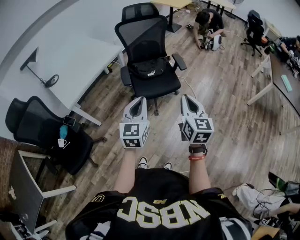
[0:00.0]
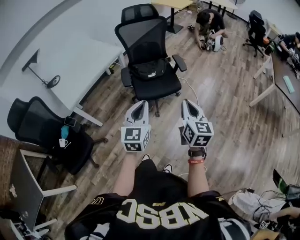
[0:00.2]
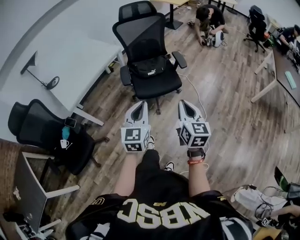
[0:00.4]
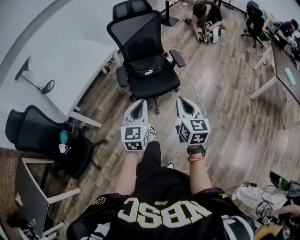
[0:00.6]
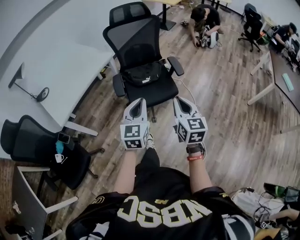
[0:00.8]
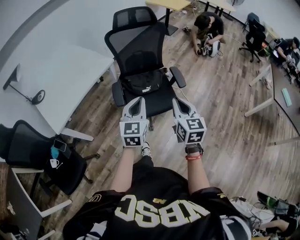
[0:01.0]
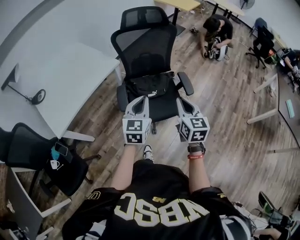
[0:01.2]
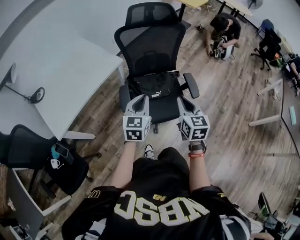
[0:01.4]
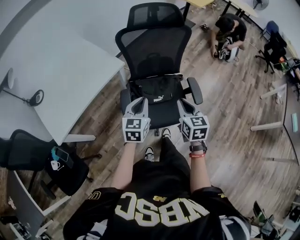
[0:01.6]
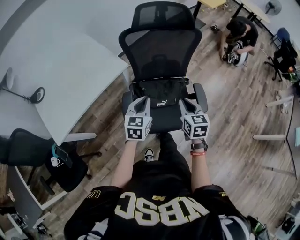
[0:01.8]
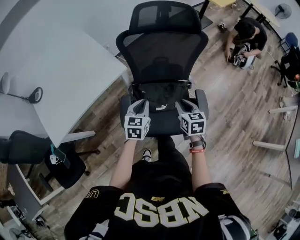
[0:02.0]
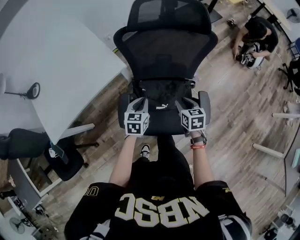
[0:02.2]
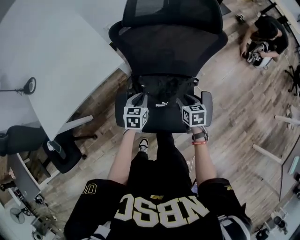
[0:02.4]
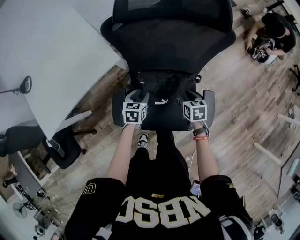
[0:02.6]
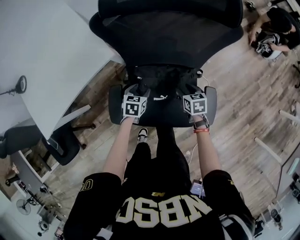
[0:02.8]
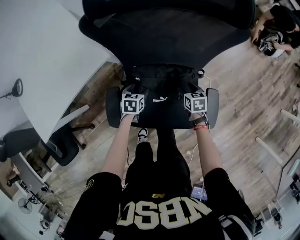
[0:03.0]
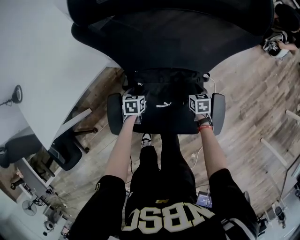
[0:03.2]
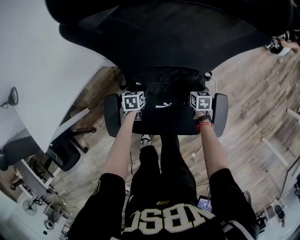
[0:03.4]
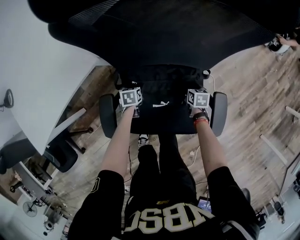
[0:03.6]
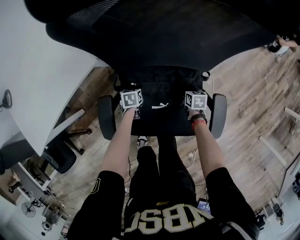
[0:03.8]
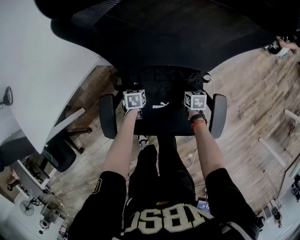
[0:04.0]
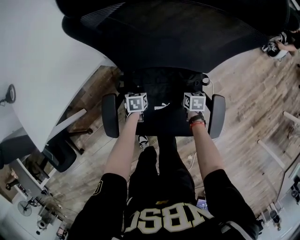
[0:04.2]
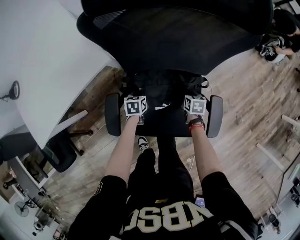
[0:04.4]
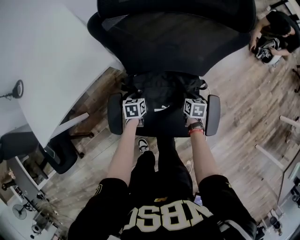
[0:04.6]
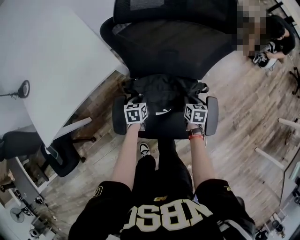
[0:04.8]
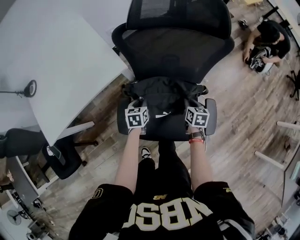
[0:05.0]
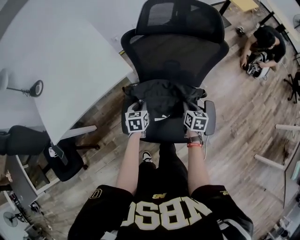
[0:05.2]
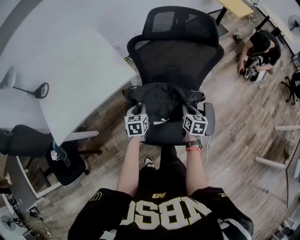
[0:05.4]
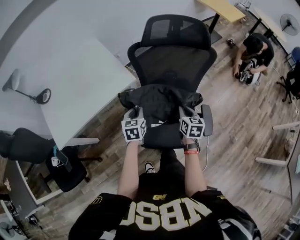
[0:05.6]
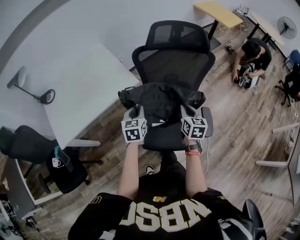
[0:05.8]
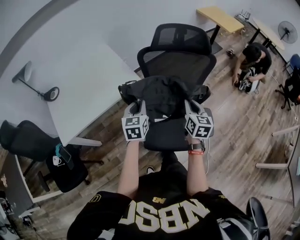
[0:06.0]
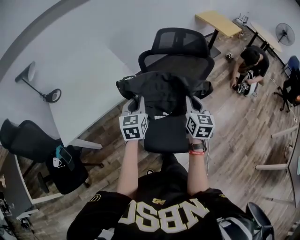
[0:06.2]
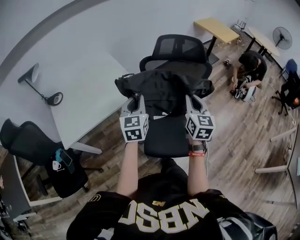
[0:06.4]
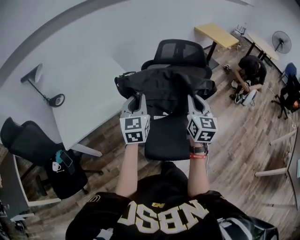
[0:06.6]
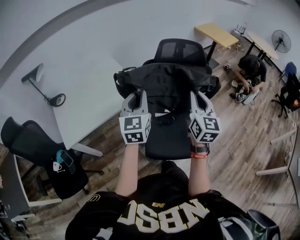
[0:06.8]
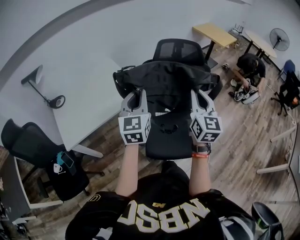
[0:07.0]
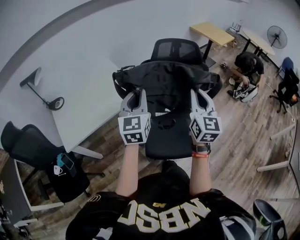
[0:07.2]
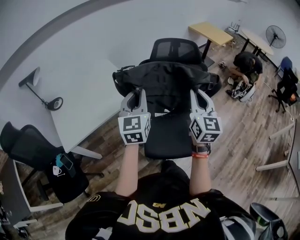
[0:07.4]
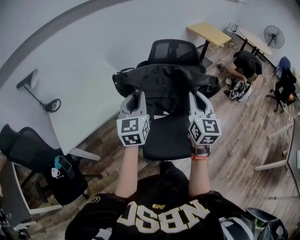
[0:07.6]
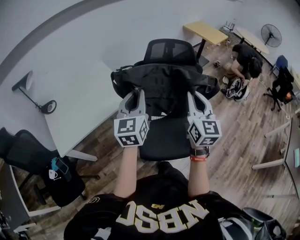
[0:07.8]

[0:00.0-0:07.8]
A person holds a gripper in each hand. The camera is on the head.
0:00.0 to 0:01.6: The two grippers travel together, forward, some 40 cm. The right gripper rotates approximately 20 degrees.
0:01.6 to 0:03.2: Both grippers travel together downward and forward, roughly 50 cm. The right gripper rotates some 40 degrees, and opens its fingers; the left gripper angles its fingers downward, by about 40 degrees, and opens its fingers.
0:03.2 to 0:04.6: The left gripper travels downward and back again, approximately 10 cm each way, and closes its fingers; the right gripper goes downward and returns, about 10 cm each way, and closes.
0:04.6 to 0:06.2: The grippers both shift upward by some 50 cm. The left gripper angles its fingers upward, by approximately 40 degrees. The right gripper points its fingers roughly 40 degrees further upward.
0:06.2 to 0:07.8: The grippers both shift upward by some 15 cm.

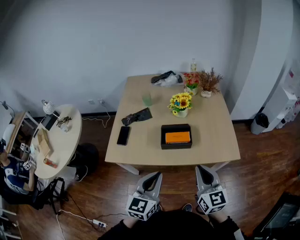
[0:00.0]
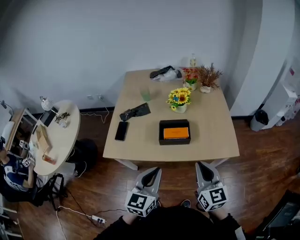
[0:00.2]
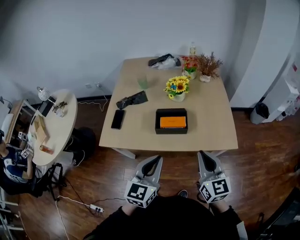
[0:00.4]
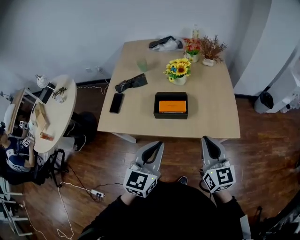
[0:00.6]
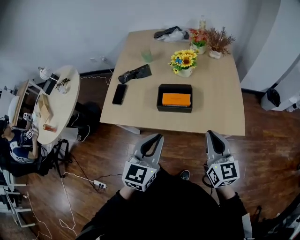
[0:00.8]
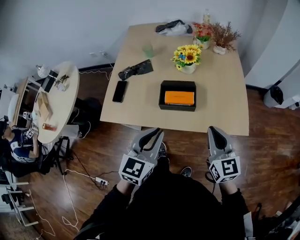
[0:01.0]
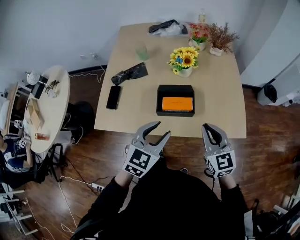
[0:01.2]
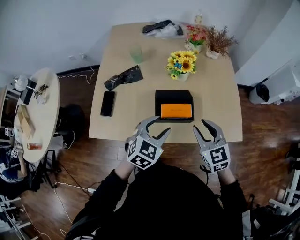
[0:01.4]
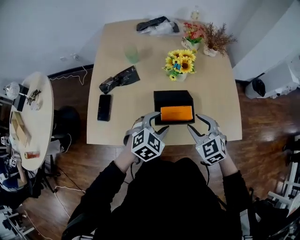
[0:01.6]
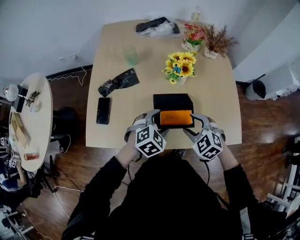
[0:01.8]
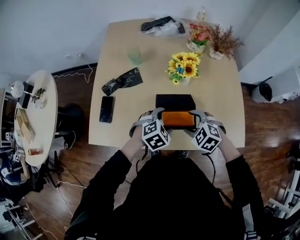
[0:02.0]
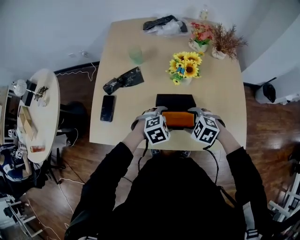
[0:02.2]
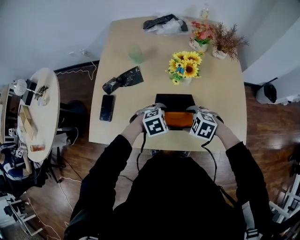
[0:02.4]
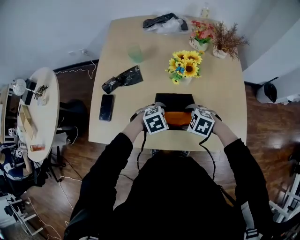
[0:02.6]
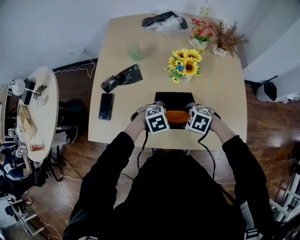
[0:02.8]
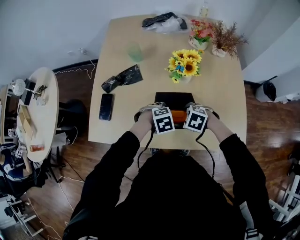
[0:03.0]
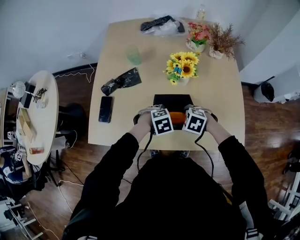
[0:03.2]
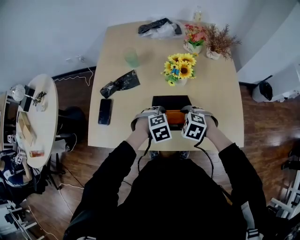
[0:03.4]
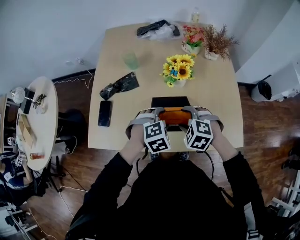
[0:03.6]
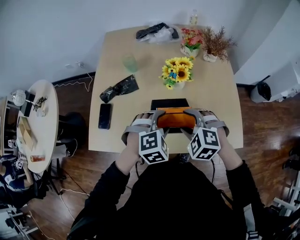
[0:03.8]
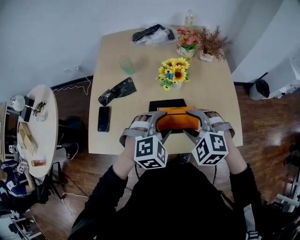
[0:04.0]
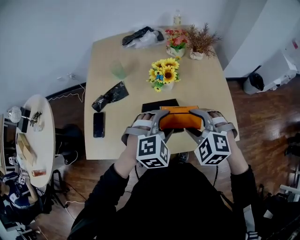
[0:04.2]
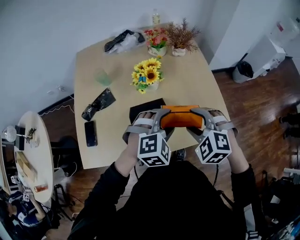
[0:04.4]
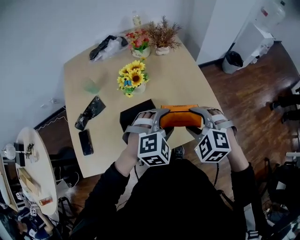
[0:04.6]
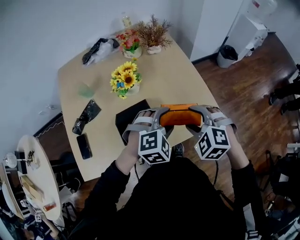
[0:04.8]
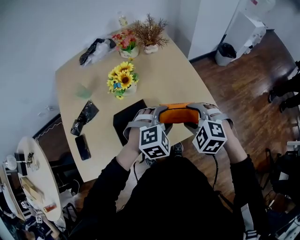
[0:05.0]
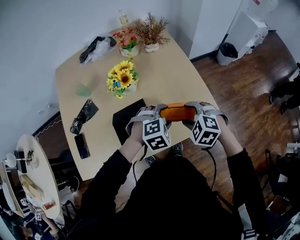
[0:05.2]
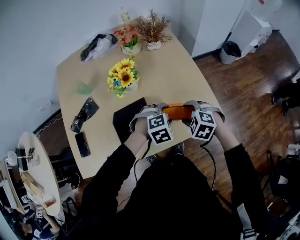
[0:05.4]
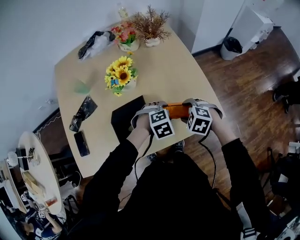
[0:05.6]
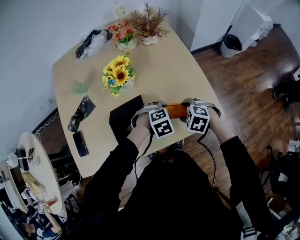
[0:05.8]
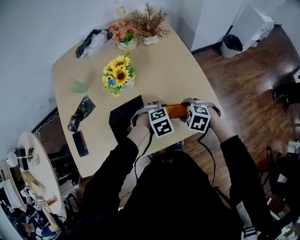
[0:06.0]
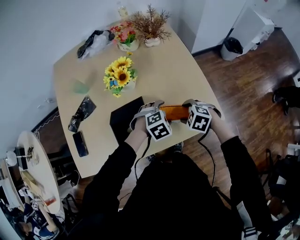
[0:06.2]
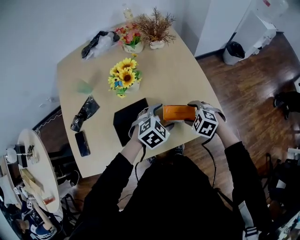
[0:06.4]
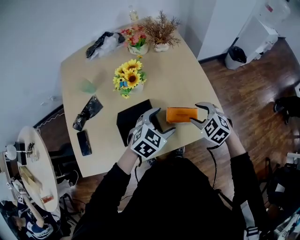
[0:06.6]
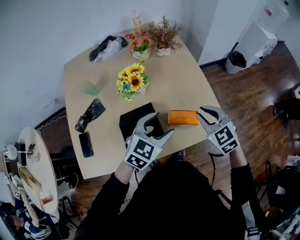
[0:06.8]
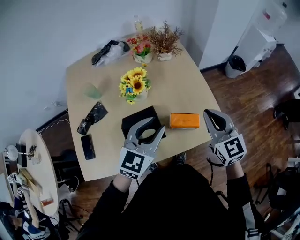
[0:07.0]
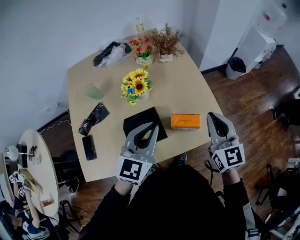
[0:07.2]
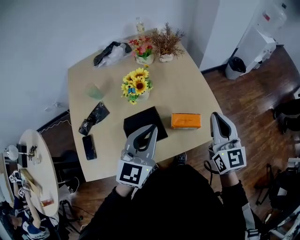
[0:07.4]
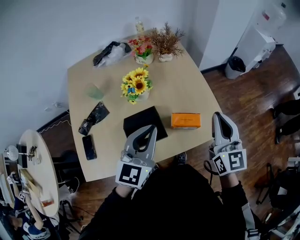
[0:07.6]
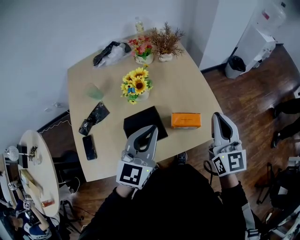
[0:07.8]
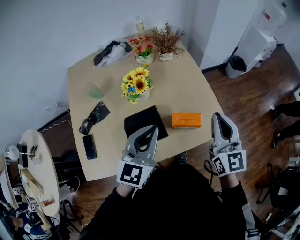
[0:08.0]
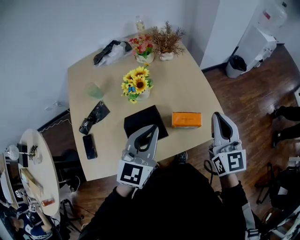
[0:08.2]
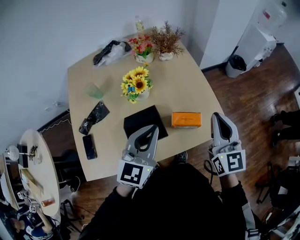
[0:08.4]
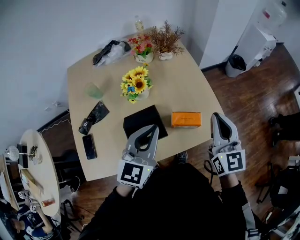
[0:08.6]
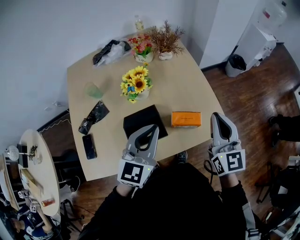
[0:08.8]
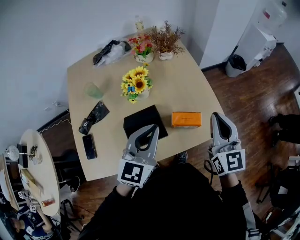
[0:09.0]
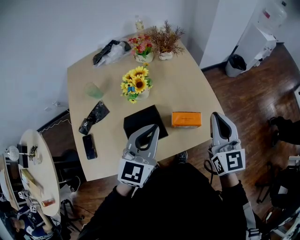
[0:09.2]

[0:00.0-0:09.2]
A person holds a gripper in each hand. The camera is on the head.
0:00.0 to 0:01.6: Both grippers travel together forward and downward, roughly 30 cm. The right gripper angles its fingers downward, by some 30 degrees, and opens its fingers. Meanwhile the left gripper angles its fingers downward, by some 30 degrees, and opens its fingers.
0:01.6 to 0:03.0: The two grippers go approximately 10 cm downward. The left gripper rotates about 40 degrees, while the right gripper tips its fingers downward by some 30 degrees.
0:03.0 to 0:04.6: Both grippers travel together upward, some 20 cm. The right gripper swivels some 40 degrees, while the left gripper swivels roughly 40 degrees.
0:04.6 to 0:06.2: The two grippers go roughly 15 cm downward. The left gripper rotates approximately 20 degrees, while the right gripper turns by approximately 30 degrees.
0:06.2 to 0:07.6: The right gripper heads upward, covering roughly 30 cm, points its fingers some 70 degrees further upward, and closes its fingers. Meanwhile the left gripper is displaced upward and to the left by roughly 30 cm, points its fingers some 60 degrees further upward, and closes its fingers.
0:07.6 to 0:09.2: The grippers move only a little.

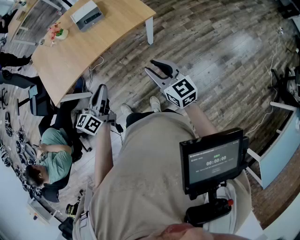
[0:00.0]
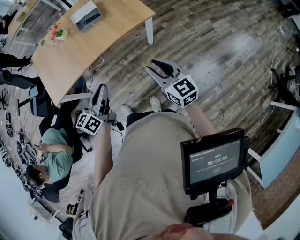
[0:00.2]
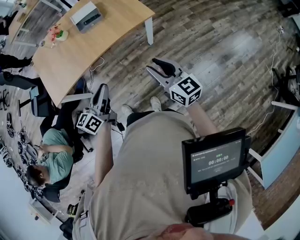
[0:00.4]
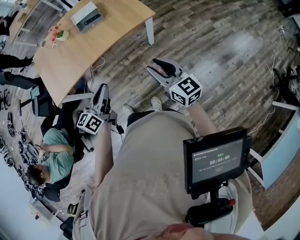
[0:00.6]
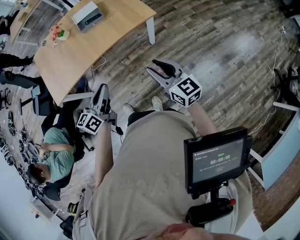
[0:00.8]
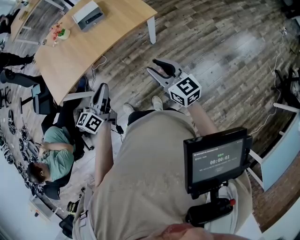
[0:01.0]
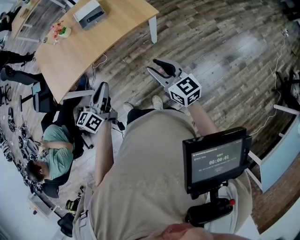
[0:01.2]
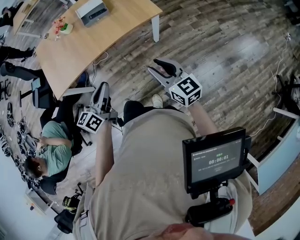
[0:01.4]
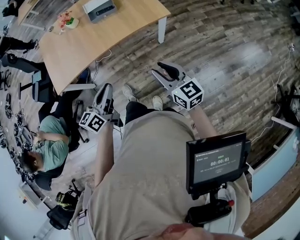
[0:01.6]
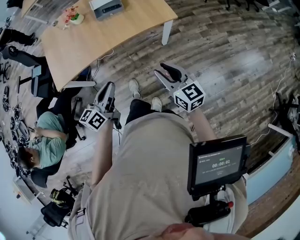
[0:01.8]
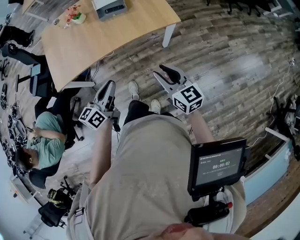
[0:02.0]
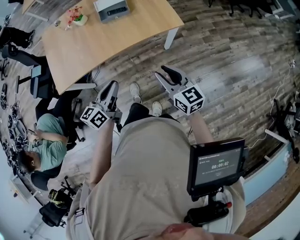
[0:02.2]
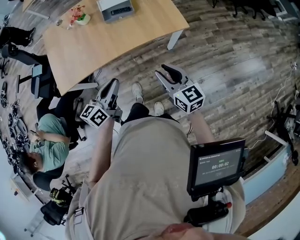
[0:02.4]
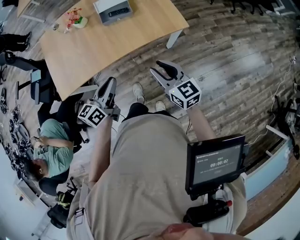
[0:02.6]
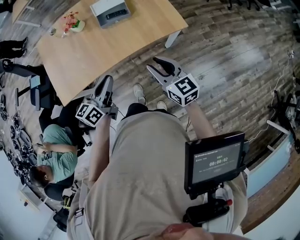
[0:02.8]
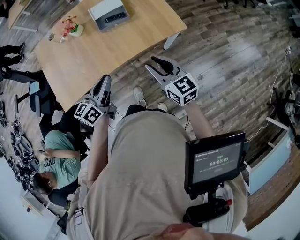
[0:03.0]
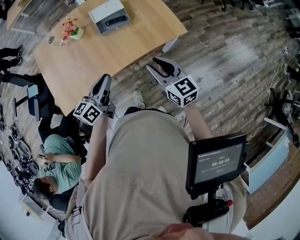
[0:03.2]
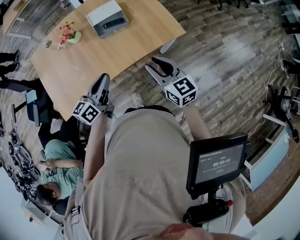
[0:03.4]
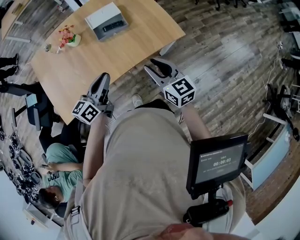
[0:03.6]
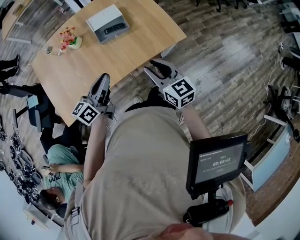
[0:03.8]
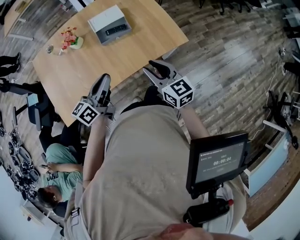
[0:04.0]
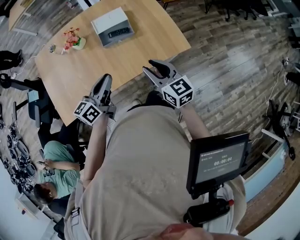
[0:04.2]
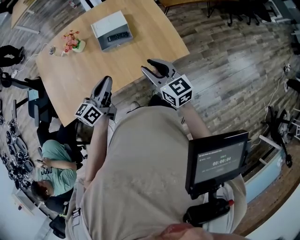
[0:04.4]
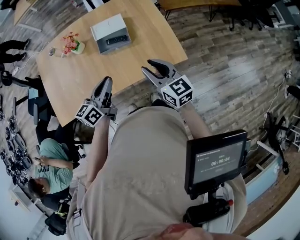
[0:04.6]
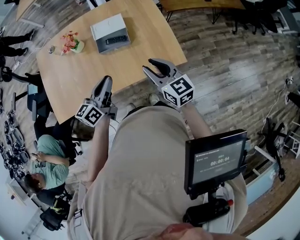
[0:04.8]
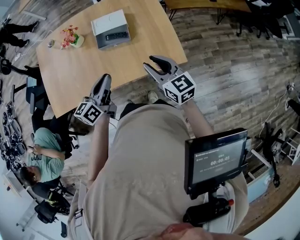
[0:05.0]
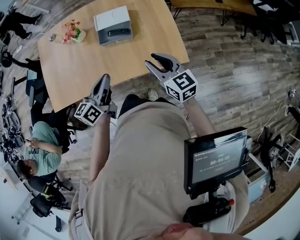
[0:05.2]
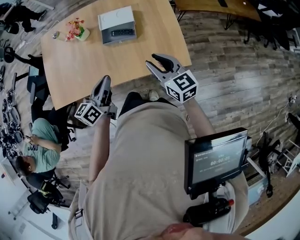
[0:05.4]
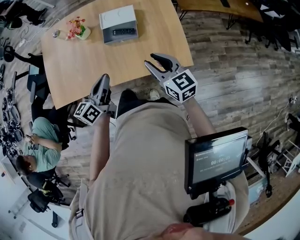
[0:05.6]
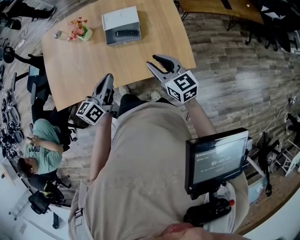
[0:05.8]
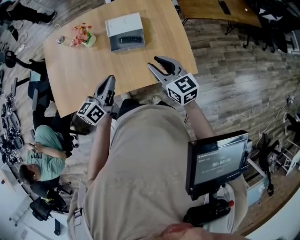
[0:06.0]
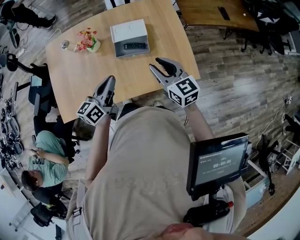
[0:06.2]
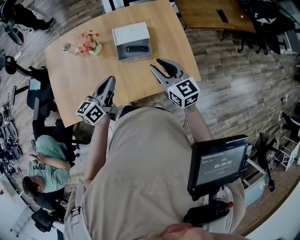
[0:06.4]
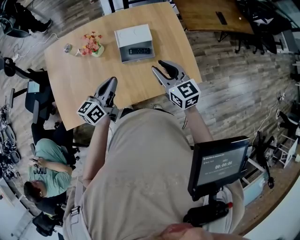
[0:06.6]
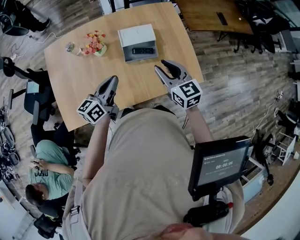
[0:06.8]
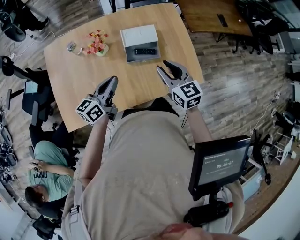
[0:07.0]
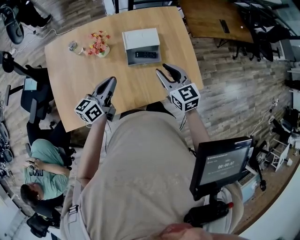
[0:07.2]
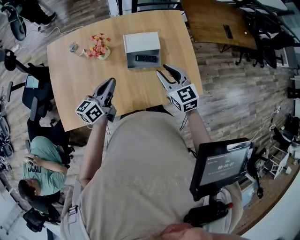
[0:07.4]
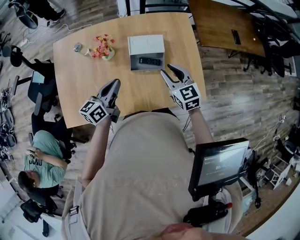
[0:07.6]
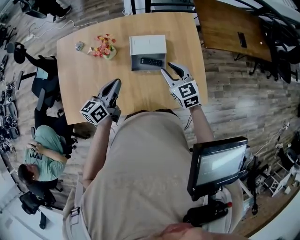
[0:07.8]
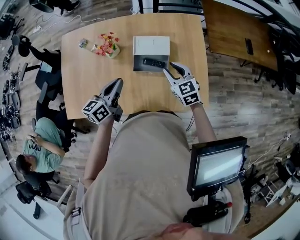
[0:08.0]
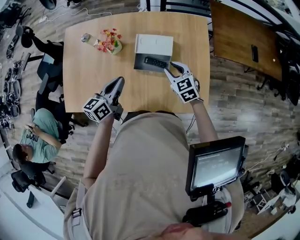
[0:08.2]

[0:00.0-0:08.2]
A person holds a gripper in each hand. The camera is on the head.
0:00.0 to 0:01.6: The grippers make only small movements.
0:01.6 to 0:03.2: The two grippers go about 30 cm forward and to the left.
0:03.2 to 0:05.0: Both grippers travel together forward and to the right, some 20 cm.
0:05.0 to 0:06.6: Both grippers travel together to the left and forward, roughly 20 cm.
0:06.6 to 0:08.2: The left gripper travels forward by approximately 10 cm; the right gripper is displaced forward and downward by roughly 20 cm, and swivels roughly 30 degrees.
